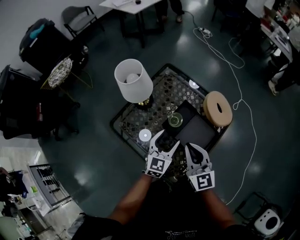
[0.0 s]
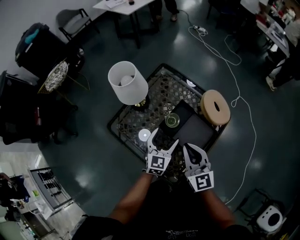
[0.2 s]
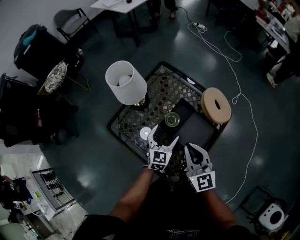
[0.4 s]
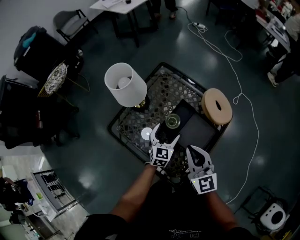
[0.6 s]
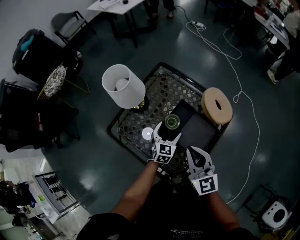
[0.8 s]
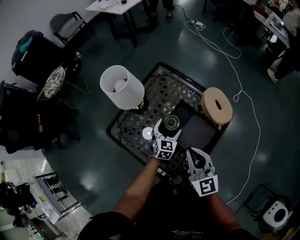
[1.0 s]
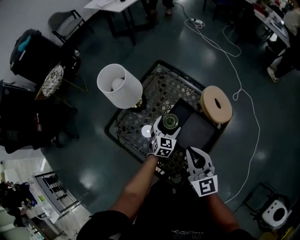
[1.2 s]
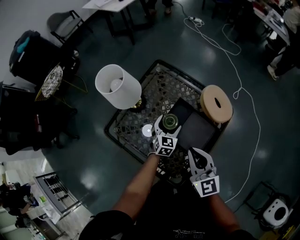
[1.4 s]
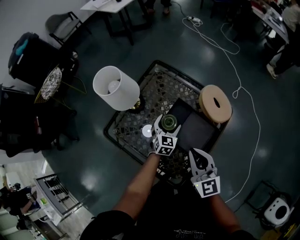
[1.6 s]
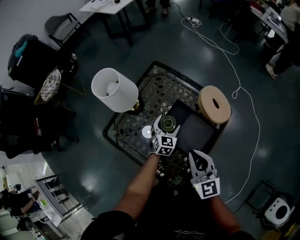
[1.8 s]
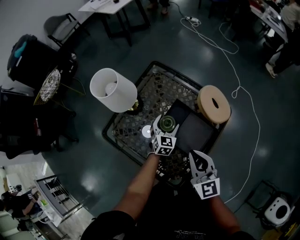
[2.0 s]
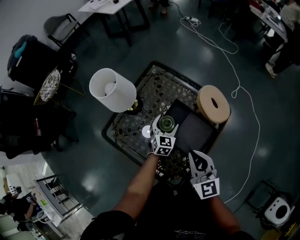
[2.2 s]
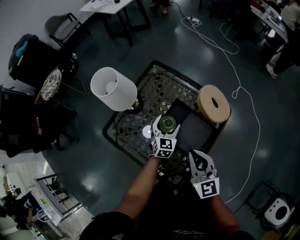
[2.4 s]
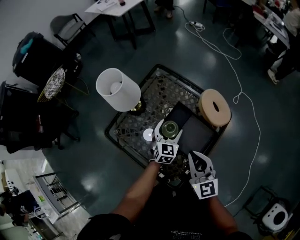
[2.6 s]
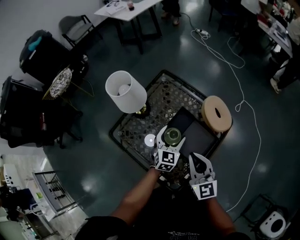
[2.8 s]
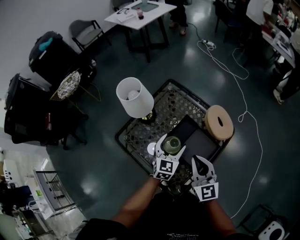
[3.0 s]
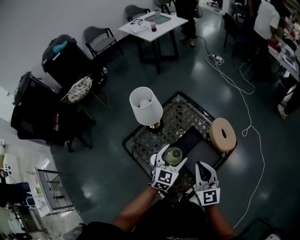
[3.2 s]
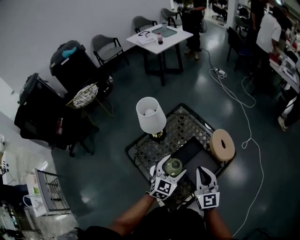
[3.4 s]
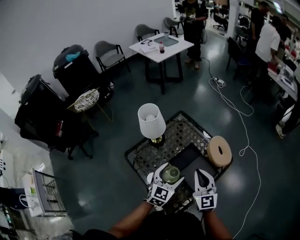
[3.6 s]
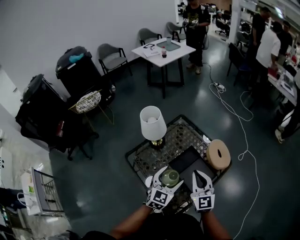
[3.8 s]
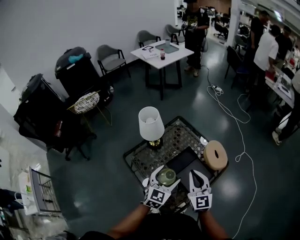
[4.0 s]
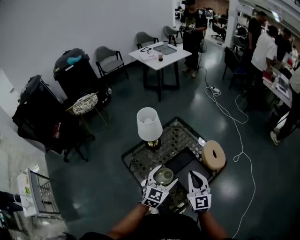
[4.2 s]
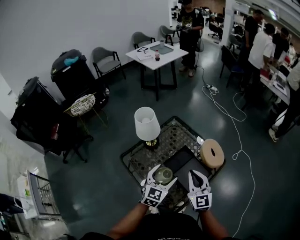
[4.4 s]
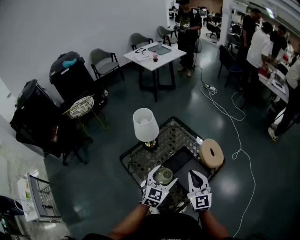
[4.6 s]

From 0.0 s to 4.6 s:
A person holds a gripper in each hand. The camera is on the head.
From 0.0 s to 1.6 s: The left gripper is displaced downward and forward by roughly 15 cm.
From 1.6 s to 3.0 s: The left gripper is displaced upward and backward by approximately 15 cm.
From 3.0 s to 4.6 s: The left gripper travels upward and backward by roughly 10 cm.

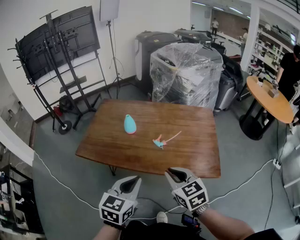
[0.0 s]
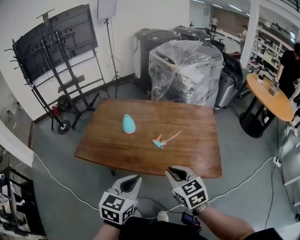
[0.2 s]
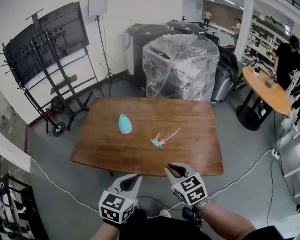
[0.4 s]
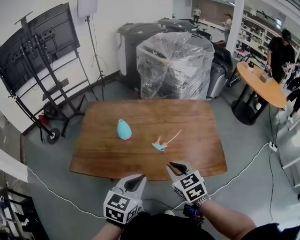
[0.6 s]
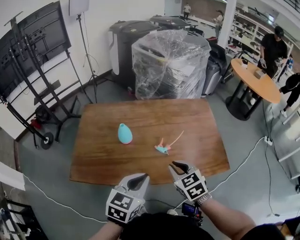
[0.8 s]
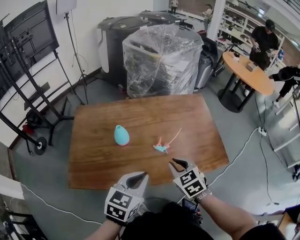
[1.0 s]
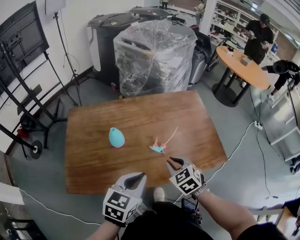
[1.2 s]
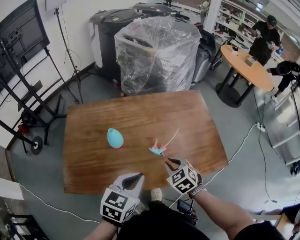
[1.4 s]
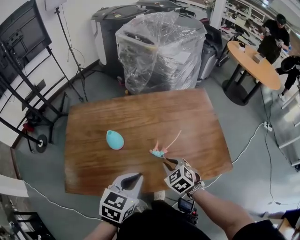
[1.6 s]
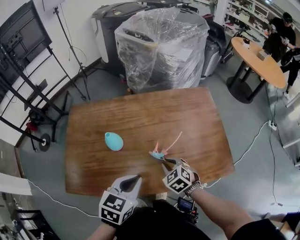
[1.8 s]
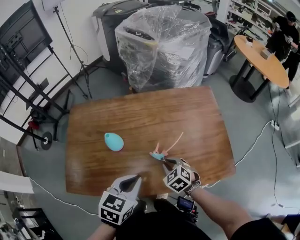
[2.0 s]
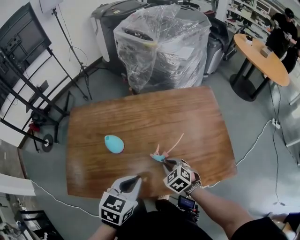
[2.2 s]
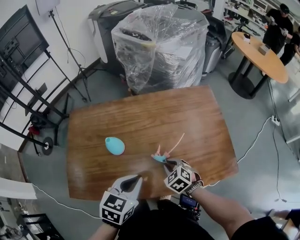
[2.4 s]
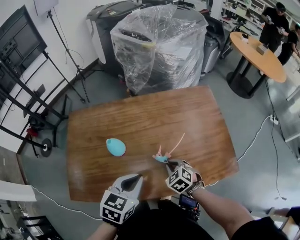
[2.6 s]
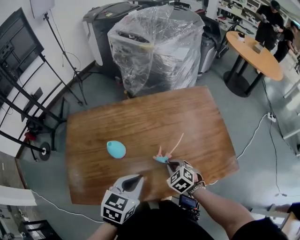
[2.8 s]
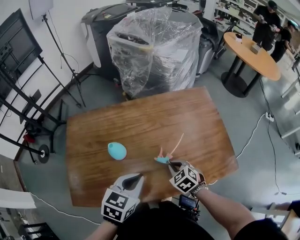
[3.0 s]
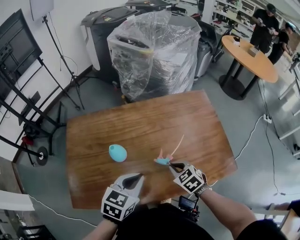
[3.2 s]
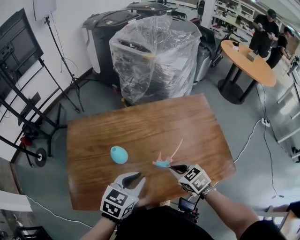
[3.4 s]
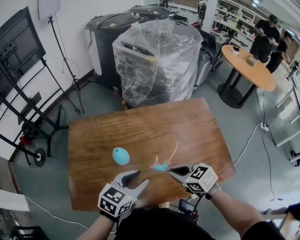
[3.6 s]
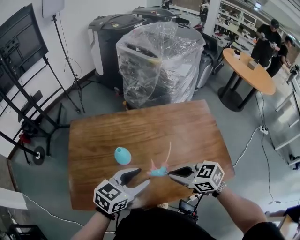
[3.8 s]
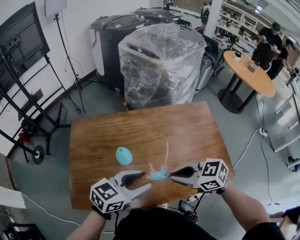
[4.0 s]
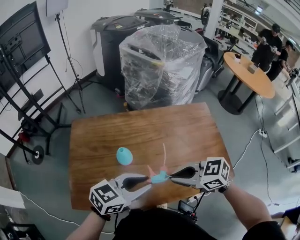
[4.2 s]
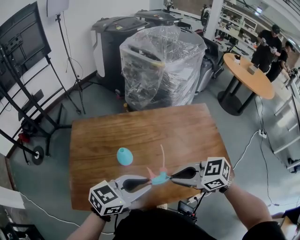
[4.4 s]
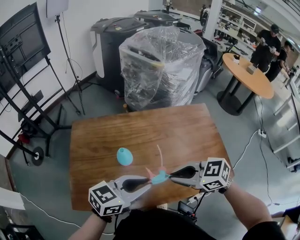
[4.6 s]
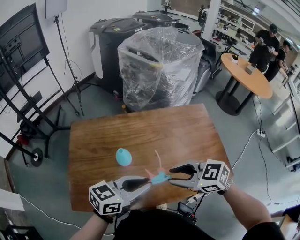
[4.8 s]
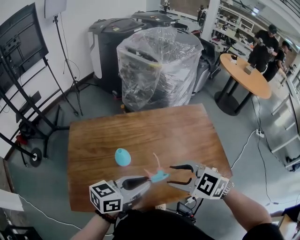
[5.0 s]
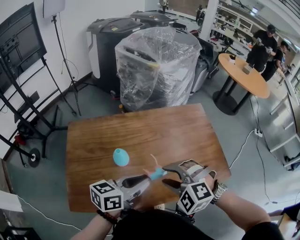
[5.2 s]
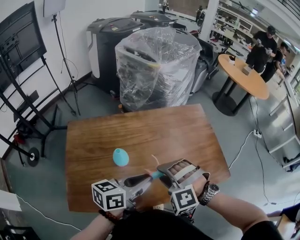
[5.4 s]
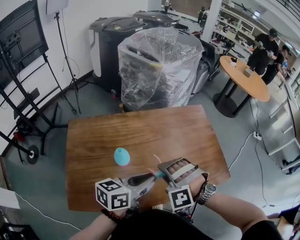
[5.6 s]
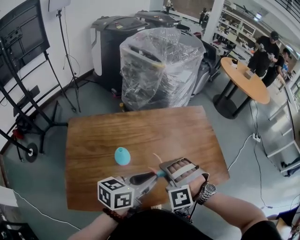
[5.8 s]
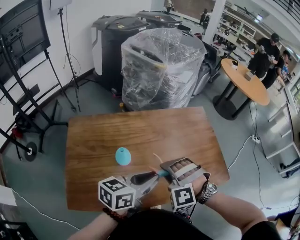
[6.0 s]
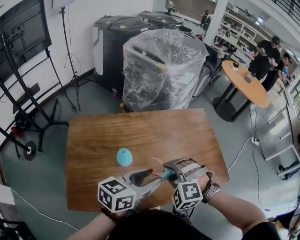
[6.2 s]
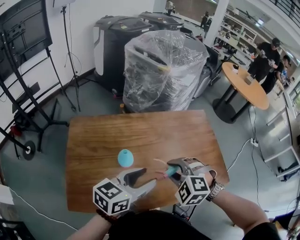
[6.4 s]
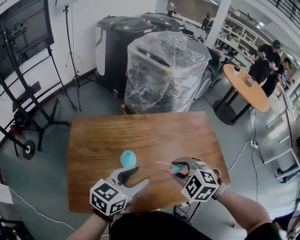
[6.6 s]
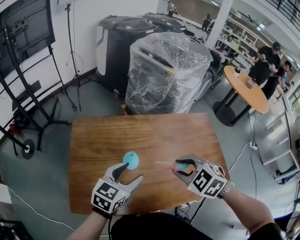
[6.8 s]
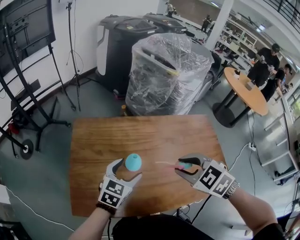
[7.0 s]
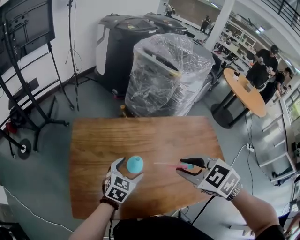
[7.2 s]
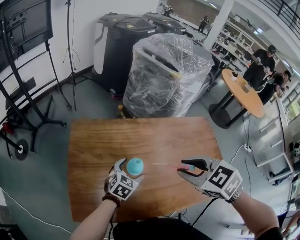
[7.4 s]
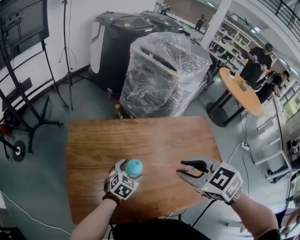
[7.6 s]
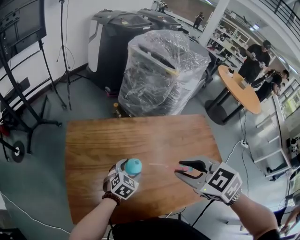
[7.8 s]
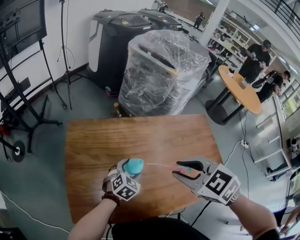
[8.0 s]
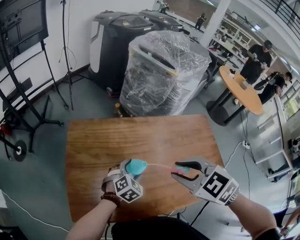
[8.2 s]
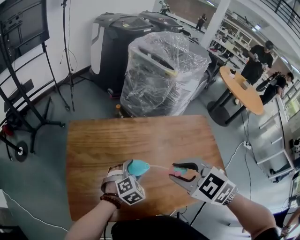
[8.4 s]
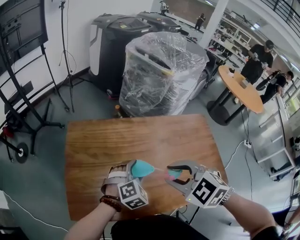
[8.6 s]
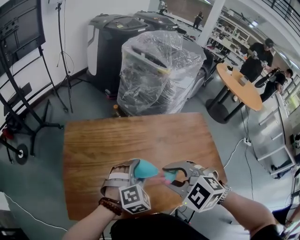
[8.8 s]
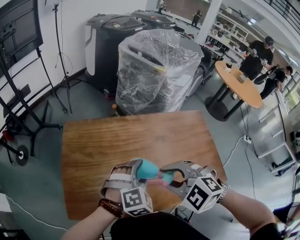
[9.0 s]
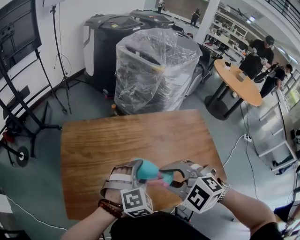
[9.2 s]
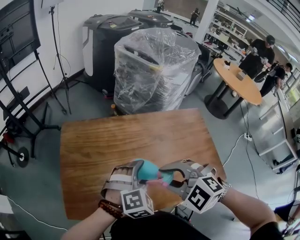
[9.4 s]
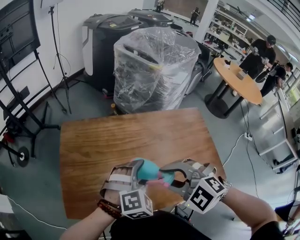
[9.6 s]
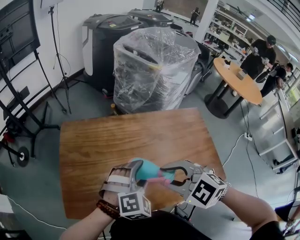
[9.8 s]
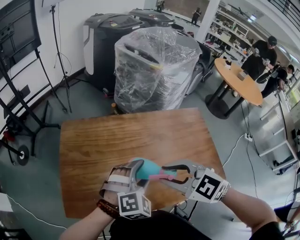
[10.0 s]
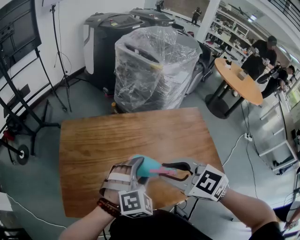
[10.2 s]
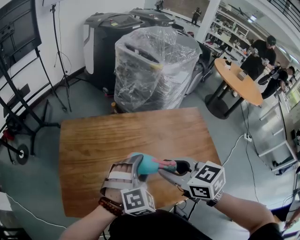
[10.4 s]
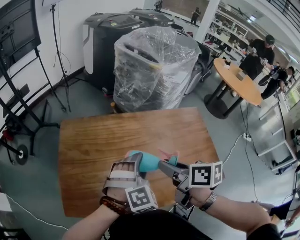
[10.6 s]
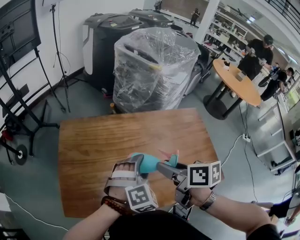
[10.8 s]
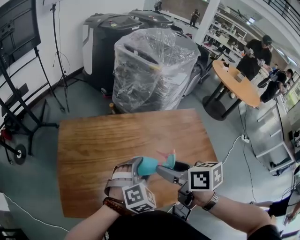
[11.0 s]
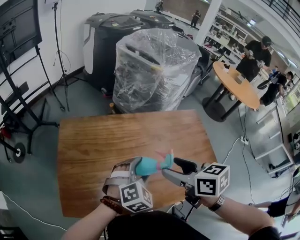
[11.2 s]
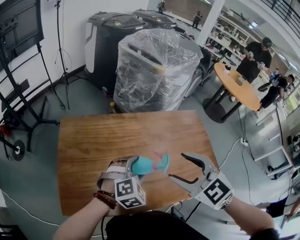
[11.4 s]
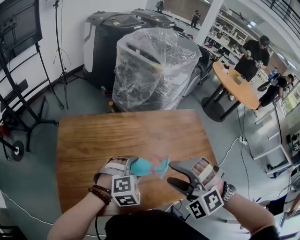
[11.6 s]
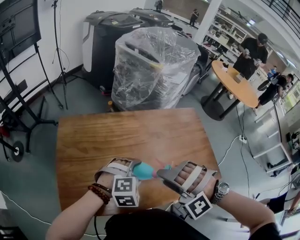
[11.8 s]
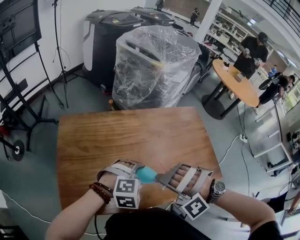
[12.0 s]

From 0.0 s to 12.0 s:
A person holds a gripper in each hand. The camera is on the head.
From 0.0 s to 1.6 s: The left gripper moves some 20 cm, and turns by some 30 degrees. Meanwhile the right gripper shifts by about 25 cm, and turns by approximately 30 degrees.
From 1.6 s to 3.0 s: The left gripper changes place by about 5 cm.
From 3.0 s to 4.4 s: The left gripper travels upward by approximately 10 cm, and swivels approximately 30 degrees. The right gripper goes approximately 20 cm upward, and changes its angle by approximately 40 degrees.
From 4.4 s to 6.0 s: The right gripper shifts by approximately 5 cm, turns by some 90 degrees, and opens its fingers. Meanwhile the left gripper turns by some 20 degrees.
From 6.0 s to 7.6 s: The right gripper moves upward, roughly 10 cm, and twists some 60 degrees clockwise, seen from behind. The left gripper travels downward by approximately 20 cm, rotates roughly 40 degrees, and opens up.
From 7.6 s to 9.0 s: The right gripper goes approximately 5 cm backward, and rotates roughly 30 degrees. The left gripper shifts some 15 cm upward, to the right and backward, and turns by about 40 degrees.
From 9.0 s to 10.4 s: The right gripper moves about 5 cm, and twists approximately 50 degrees clockwise, seen from behind.
From 10.4 s to 12.0 s: The right gripper moves approximately 10 cm, rotates around the line of its fingers by some 110 degrees, counterclockwise from behind, and opens, then closes again. The left gripper goes approximately 5 cm downward, and swivels roughly 30 degrees.

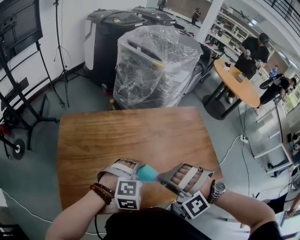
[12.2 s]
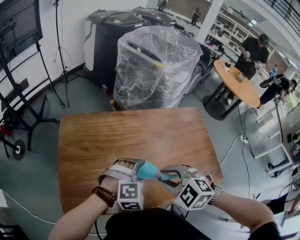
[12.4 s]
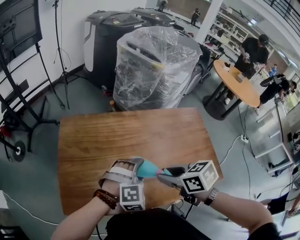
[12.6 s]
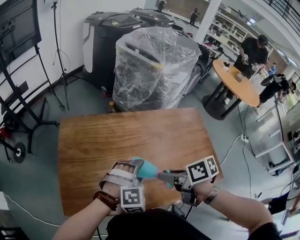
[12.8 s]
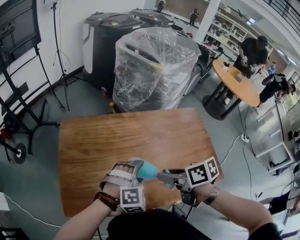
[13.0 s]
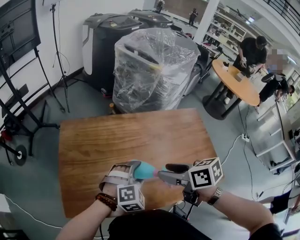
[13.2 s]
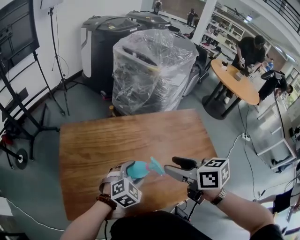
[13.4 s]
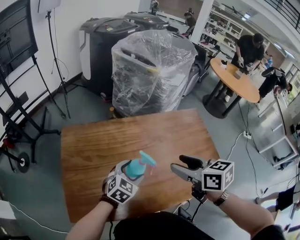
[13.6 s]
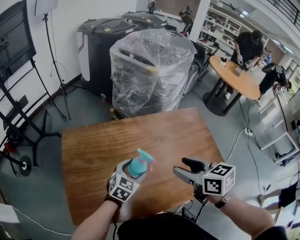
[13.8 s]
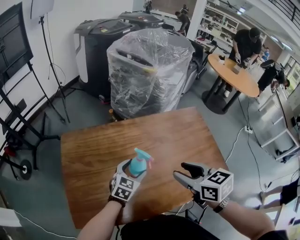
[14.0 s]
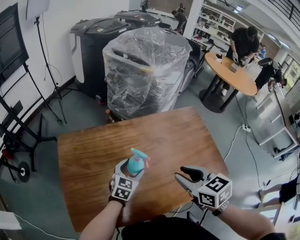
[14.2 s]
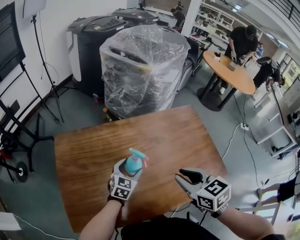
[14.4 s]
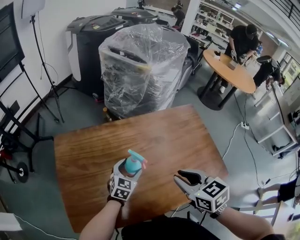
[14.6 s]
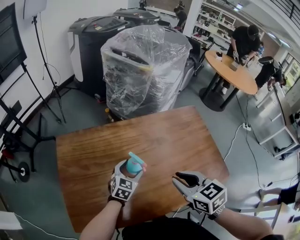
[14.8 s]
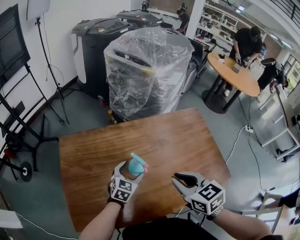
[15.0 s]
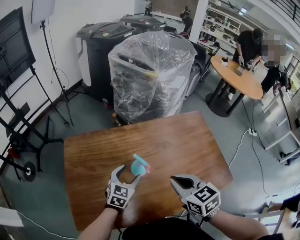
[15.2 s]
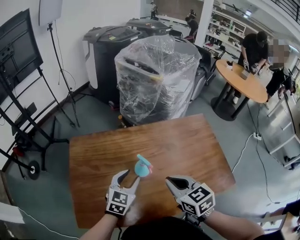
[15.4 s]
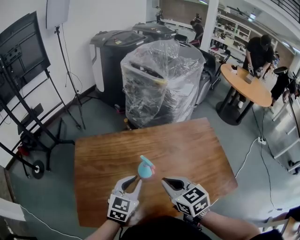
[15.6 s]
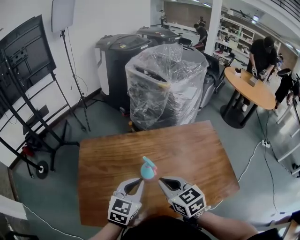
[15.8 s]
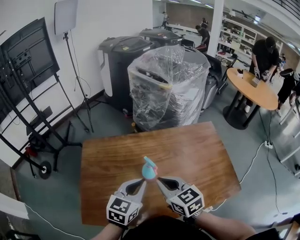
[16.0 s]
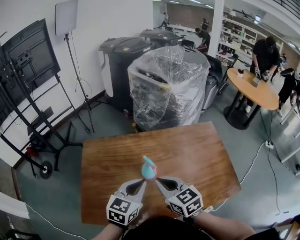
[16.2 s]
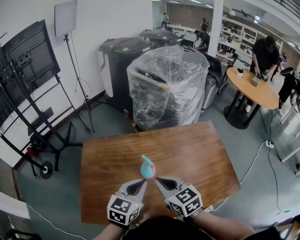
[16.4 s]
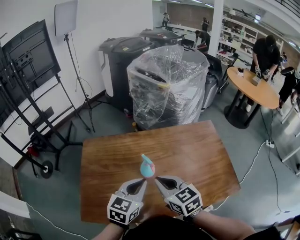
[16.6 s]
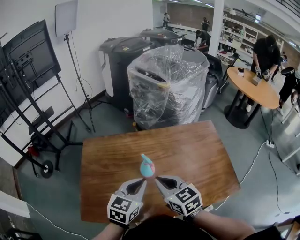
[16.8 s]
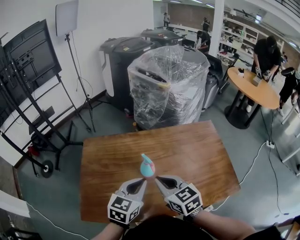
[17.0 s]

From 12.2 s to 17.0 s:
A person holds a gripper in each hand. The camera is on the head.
From 12.2 s to 13.8 s: The left gripper ends up roughly 10 cm from where it was, and rolls counterclockwise, seen from behind, by approximately 50 degrees; the right gripper shifts by roughly 15 cm, rolls clockwise, seen from behind, by approximately 110 degrees, and opens.
From 13.8 s to 15.4 s: The right gripper is displaced downward by about 5 cm, and closes up. Meanwhile the left gripper shifts by some 5 cm, and closes.
From 15.4 s to 17.0 s: The left gripper heads upward and backward, covering approximately 10 cm, and closes its fingers.

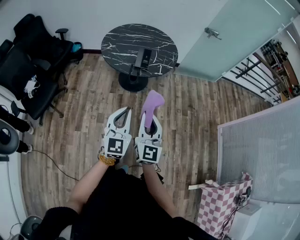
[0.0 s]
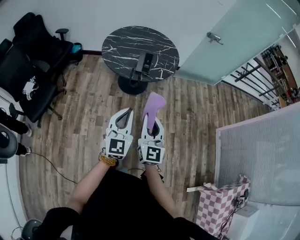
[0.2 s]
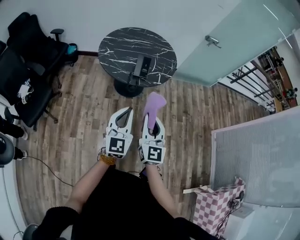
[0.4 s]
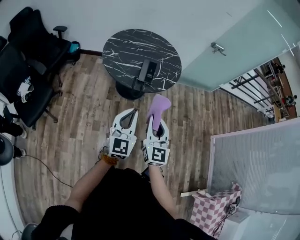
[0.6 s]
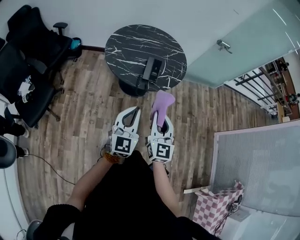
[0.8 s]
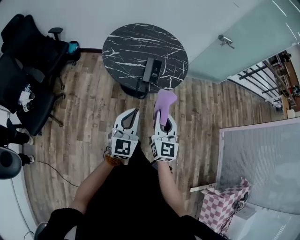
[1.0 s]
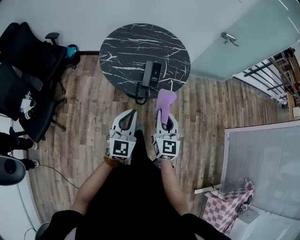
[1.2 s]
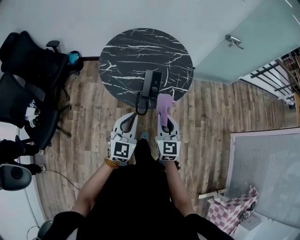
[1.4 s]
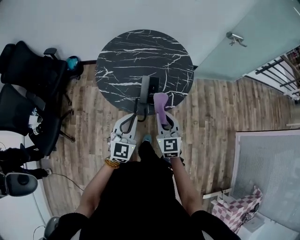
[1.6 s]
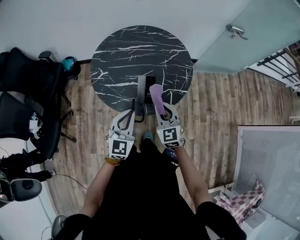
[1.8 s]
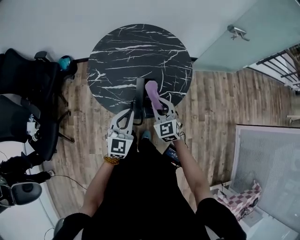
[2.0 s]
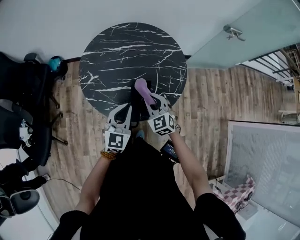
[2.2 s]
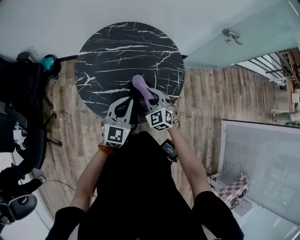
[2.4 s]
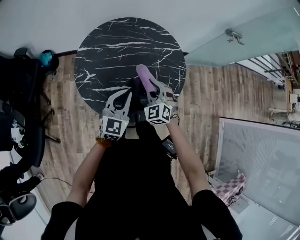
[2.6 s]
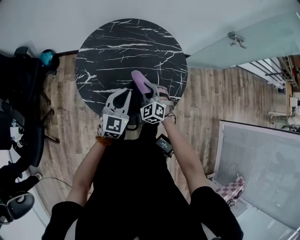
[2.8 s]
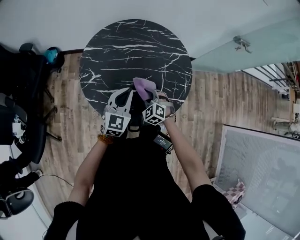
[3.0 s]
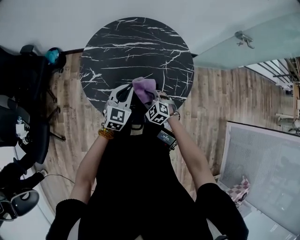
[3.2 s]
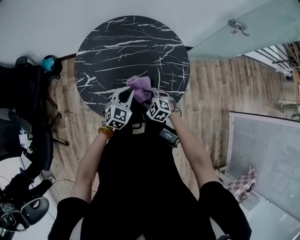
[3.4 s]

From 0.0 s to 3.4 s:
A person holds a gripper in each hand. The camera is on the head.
From 0.0 s to 1.6 s: The grippers both shift forward by roughly 40 cm. The right gripper swivels roughly 30 degrees.
From 1.6 s to 3.4 s: The left gripper shifts some 30 cm forward and downward, and rotates roughly 20 degrees. The right gripper is displaced downward and forward by about 30 cm, points its fingers some 40 degrees further downward, and opens.
